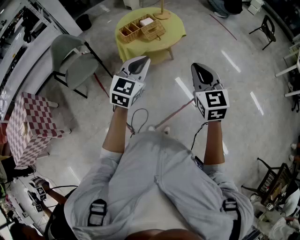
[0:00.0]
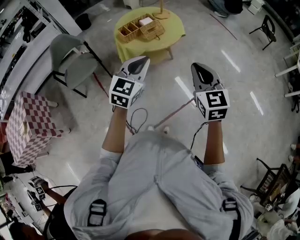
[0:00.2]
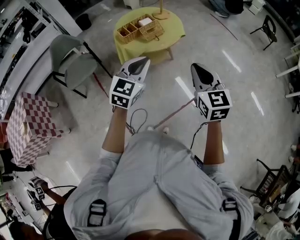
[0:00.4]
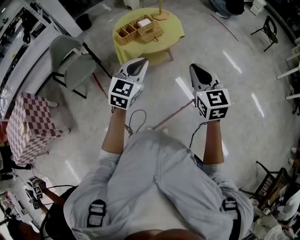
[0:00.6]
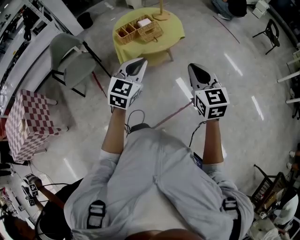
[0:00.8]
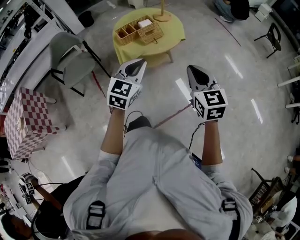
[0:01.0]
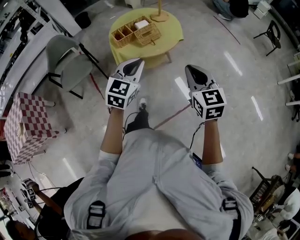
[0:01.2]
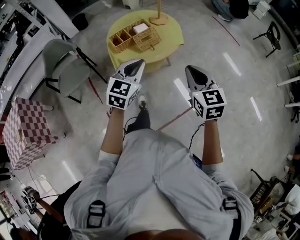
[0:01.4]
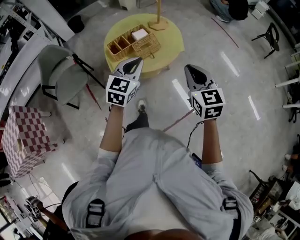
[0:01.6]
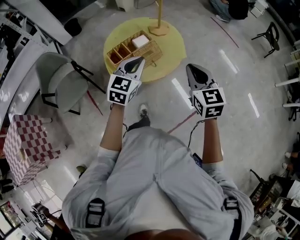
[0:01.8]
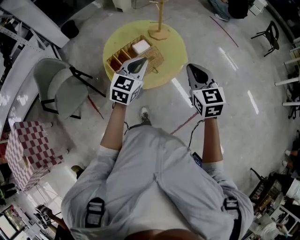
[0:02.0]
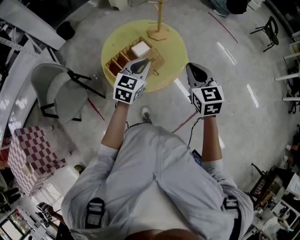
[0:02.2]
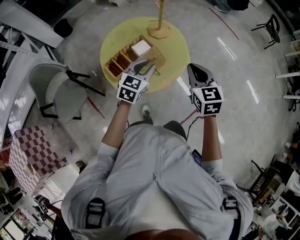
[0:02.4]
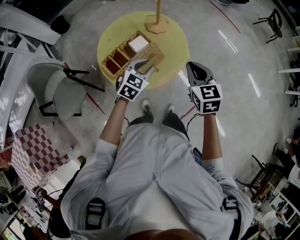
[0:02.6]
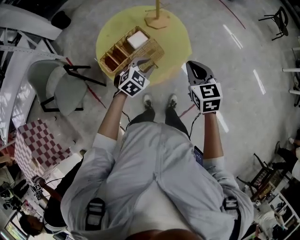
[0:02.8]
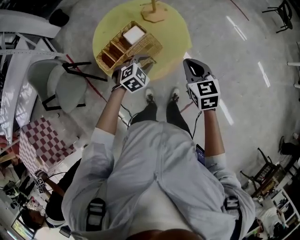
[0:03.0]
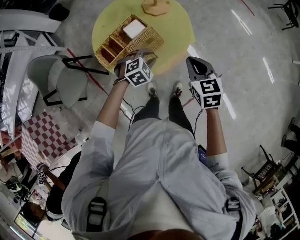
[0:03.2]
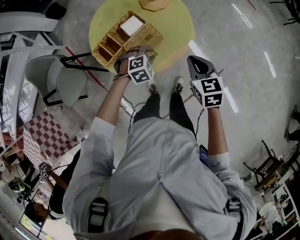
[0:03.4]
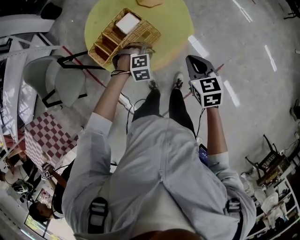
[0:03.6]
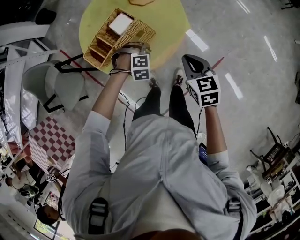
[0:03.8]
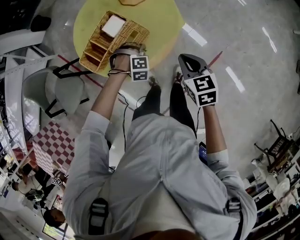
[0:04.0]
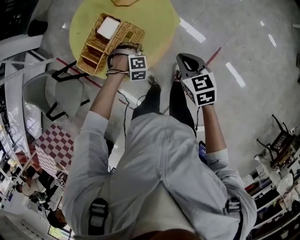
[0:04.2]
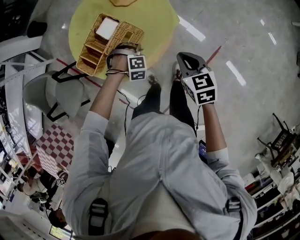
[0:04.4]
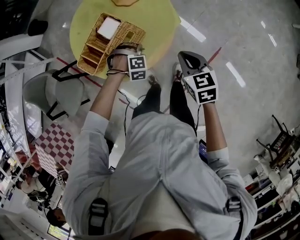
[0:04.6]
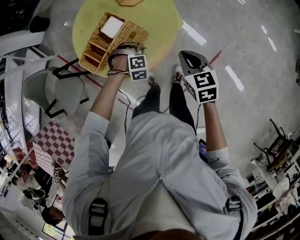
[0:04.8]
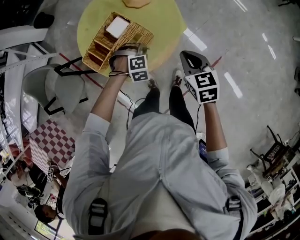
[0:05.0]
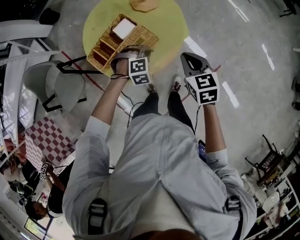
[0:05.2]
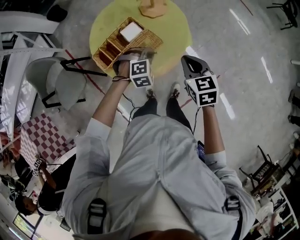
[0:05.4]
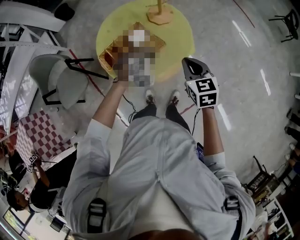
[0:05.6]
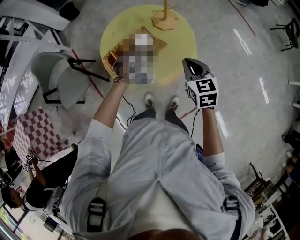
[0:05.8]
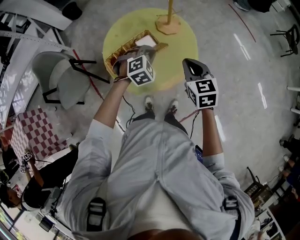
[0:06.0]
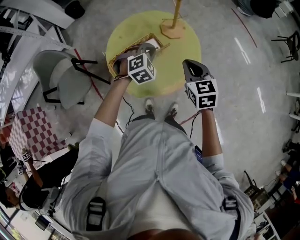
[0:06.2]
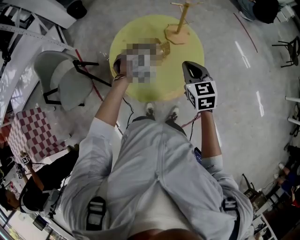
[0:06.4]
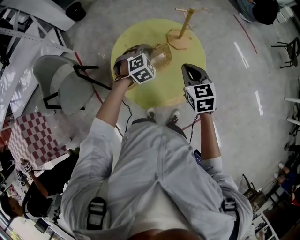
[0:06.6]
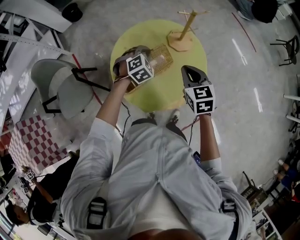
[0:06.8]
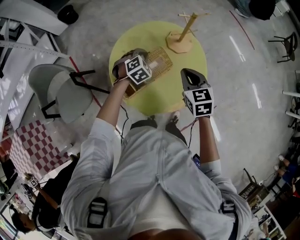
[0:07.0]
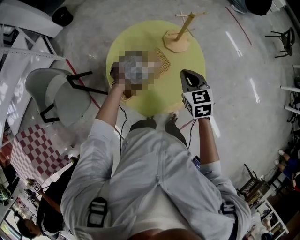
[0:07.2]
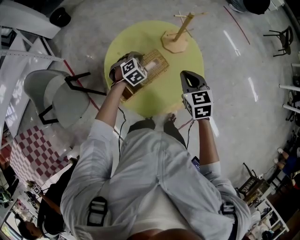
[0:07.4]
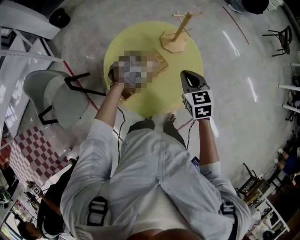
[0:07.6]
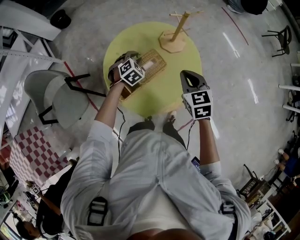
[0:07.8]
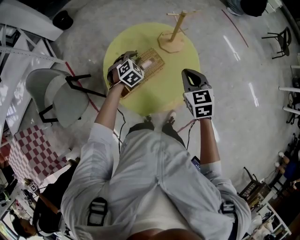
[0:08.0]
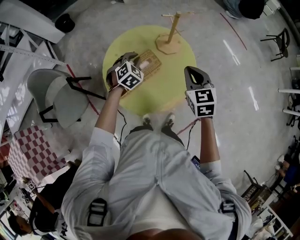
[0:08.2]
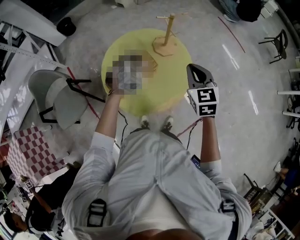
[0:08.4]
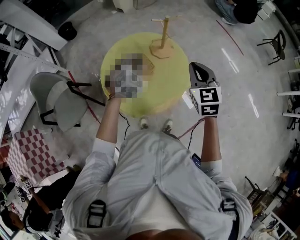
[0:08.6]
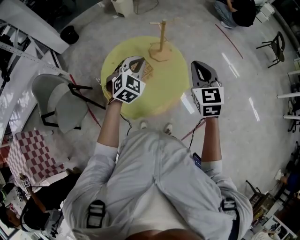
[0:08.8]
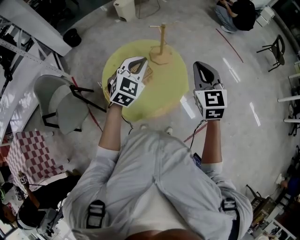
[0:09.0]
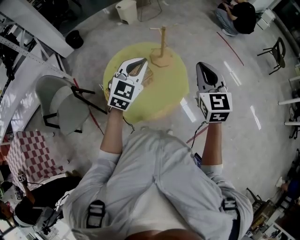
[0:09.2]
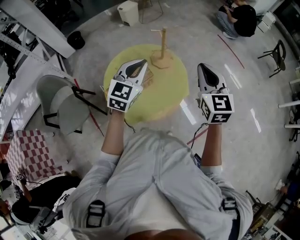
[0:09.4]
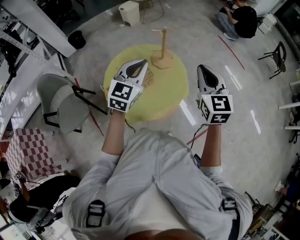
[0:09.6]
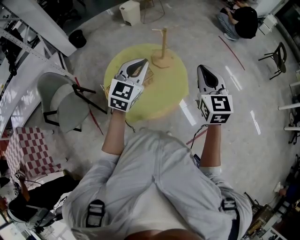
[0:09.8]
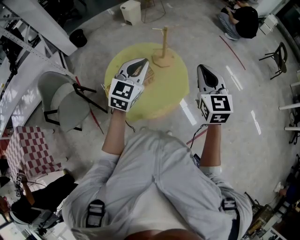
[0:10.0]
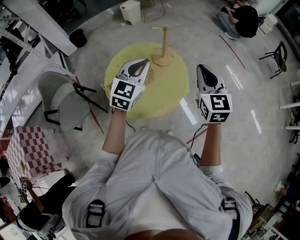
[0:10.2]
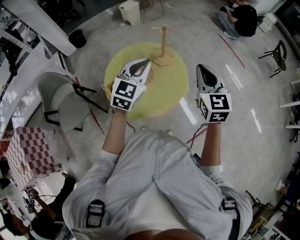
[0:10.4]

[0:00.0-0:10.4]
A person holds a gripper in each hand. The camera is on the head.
0:00.0 to 0:01.4: The grippers both shift forward by approximately 15 cm.
0:01.4 to 0:03.0: The grippers both shift forward and downward by about 35 cm. The left gripper tilts its fingers about 40 degrees downward.
0:03.0 to 0:04.4: The right gripper heads downward, covering some 10 cm. Meanwhile the left gripper shifts some 15 cm downward, and rolls clockwise, seen from behind, by roughly 40 degrees.
0:04.4 to 0:06.0: The right gripper shifts some 10 cm upward. The left gripper shifts some 20 cm upward, and rolls counterclockwise, seen from behind, by approximately 40 degrees.
0:06.0 to 0:07.4: The left gripper heads forward, to the left and downward, covering approximately 20 cm. Meanwhile the right gripper heads forward and to the left, covering about 10 cm.
0:07.4 to 0:09.0: The left gripper travels upward by about 30 cm, and tips its fingers upward by some 30 degrees. Meanwhile the right gripper moves upward and to the right, about 20 cm, and rotates approximately 30 degrees.
0:09.0 to 0:10.4: The left gripper ends up some 5 cm from where it was.

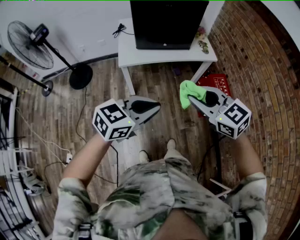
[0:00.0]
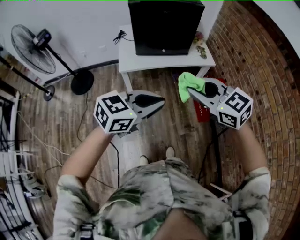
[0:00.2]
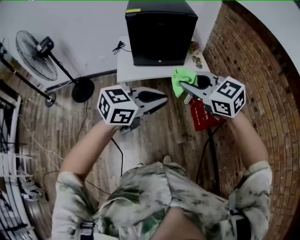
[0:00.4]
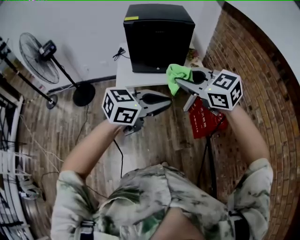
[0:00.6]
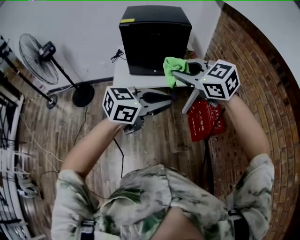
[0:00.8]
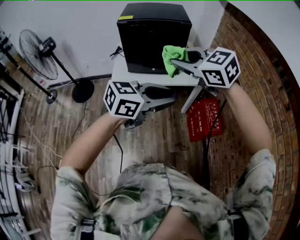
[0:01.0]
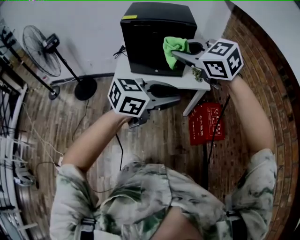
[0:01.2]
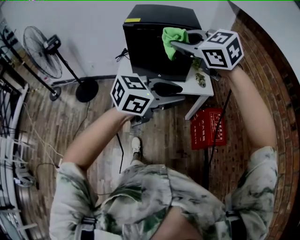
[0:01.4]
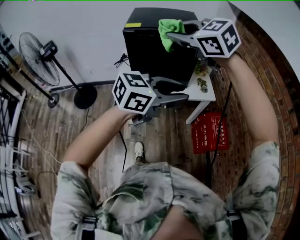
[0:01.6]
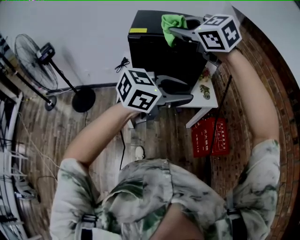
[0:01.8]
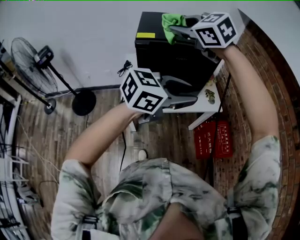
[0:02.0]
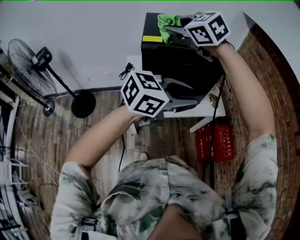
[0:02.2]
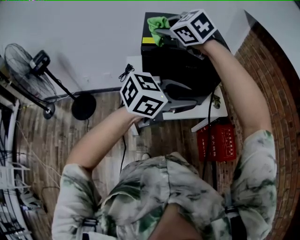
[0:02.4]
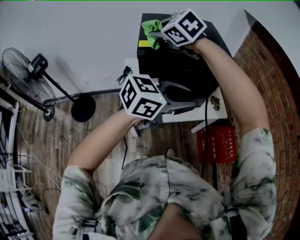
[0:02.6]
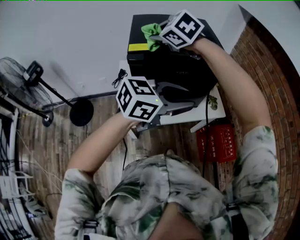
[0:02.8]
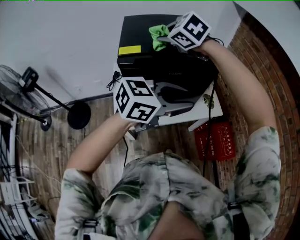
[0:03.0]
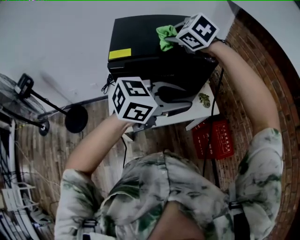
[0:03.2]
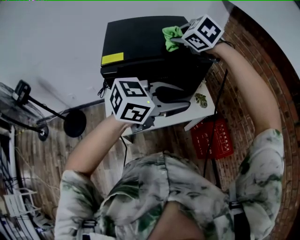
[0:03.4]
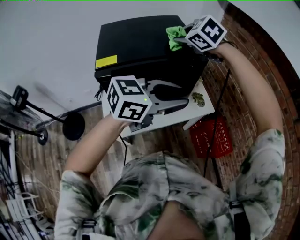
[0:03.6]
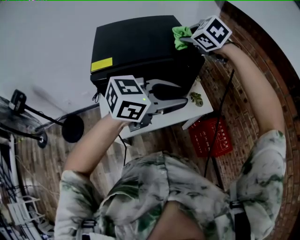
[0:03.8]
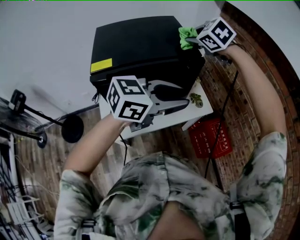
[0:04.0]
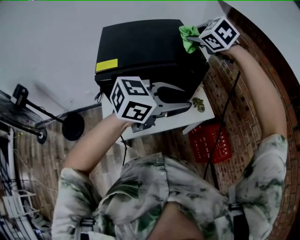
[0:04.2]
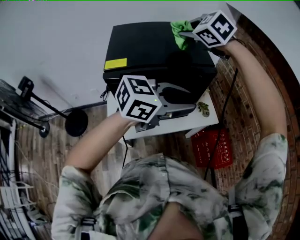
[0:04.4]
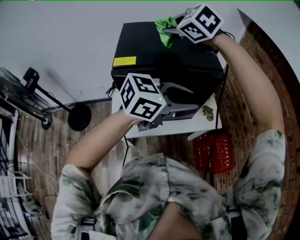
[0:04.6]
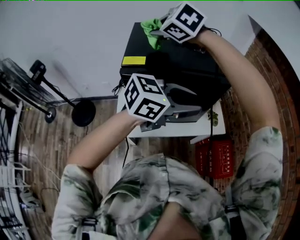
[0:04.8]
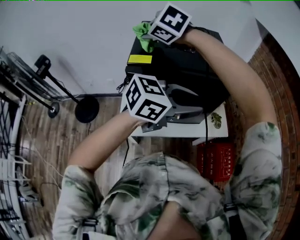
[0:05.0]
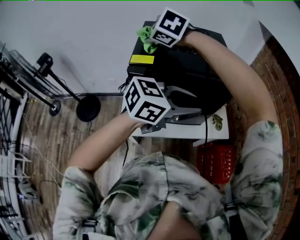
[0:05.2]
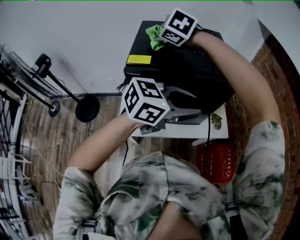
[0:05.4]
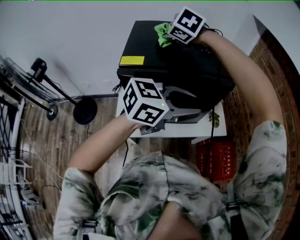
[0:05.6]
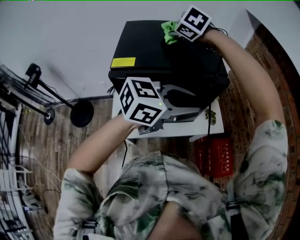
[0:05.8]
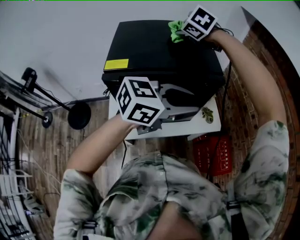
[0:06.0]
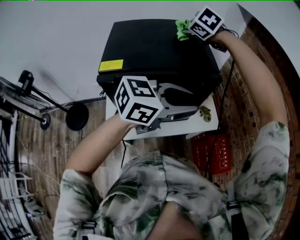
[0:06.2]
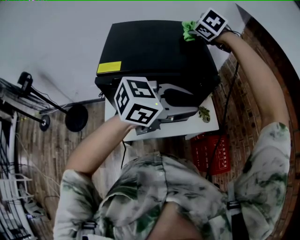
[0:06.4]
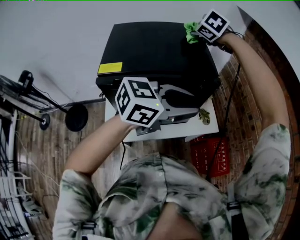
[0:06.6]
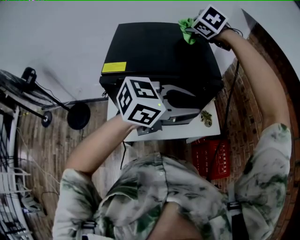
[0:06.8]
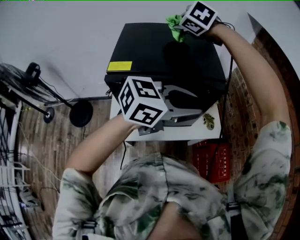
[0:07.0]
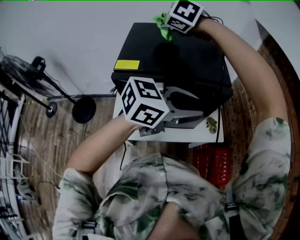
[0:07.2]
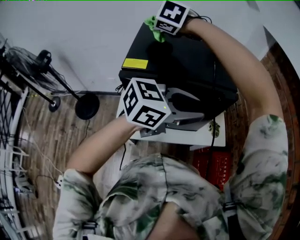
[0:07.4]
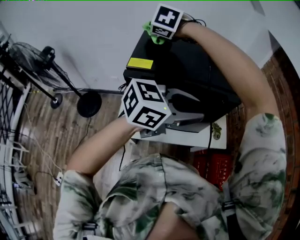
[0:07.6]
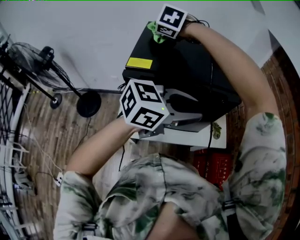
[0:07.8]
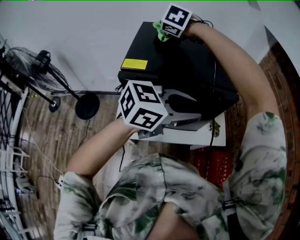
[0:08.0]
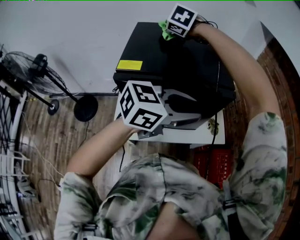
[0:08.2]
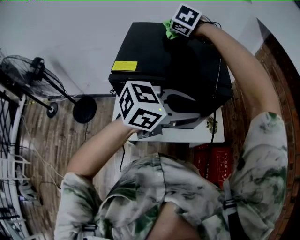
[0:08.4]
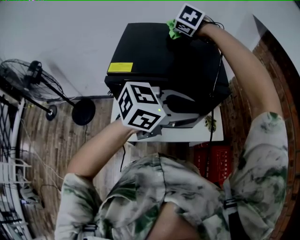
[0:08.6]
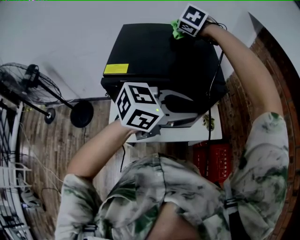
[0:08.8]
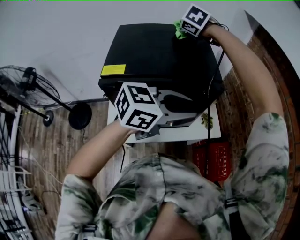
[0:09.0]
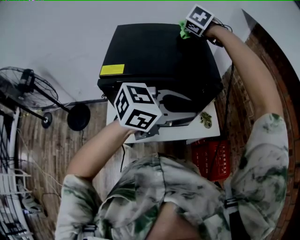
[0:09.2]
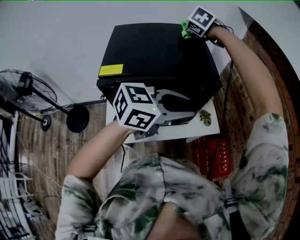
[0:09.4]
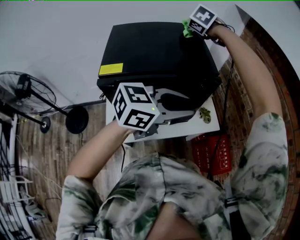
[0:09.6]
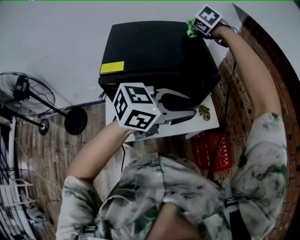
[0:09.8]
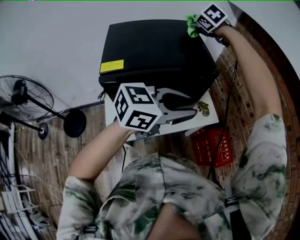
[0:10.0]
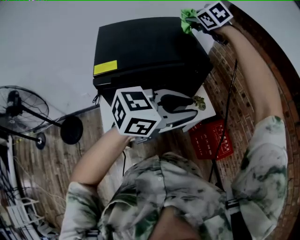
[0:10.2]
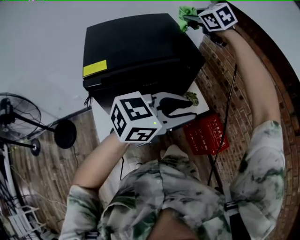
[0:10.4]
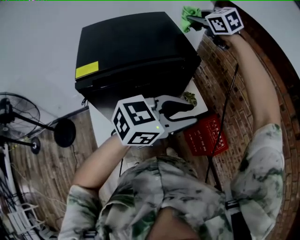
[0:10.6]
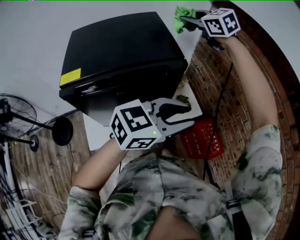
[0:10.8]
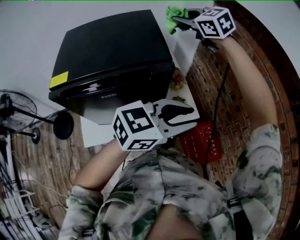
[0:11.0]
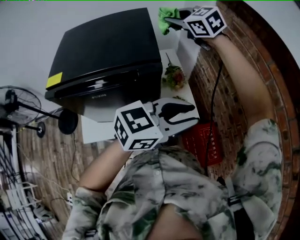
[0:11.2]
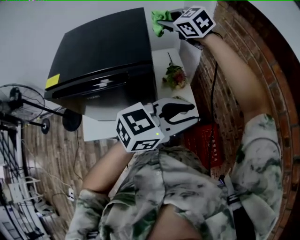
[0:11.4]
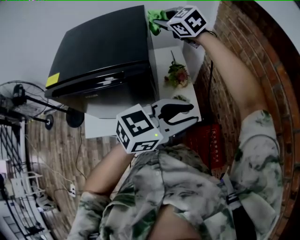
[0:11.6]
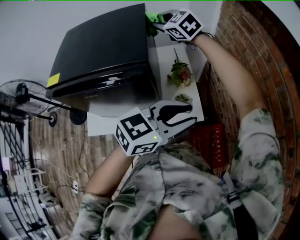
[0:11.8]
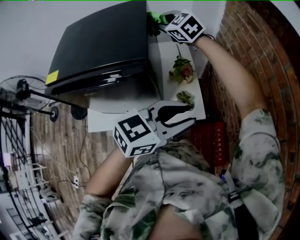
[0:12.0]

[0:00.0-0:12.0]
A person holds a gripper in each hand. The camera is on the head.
0:00.0 to 0:01.6: The right gripper shifts some 35 cm forward and upward. The left gripper goes about 25 cm forward, to the right and upward, and opens its fingers.
0:01.6 to 0:03.0: Both grippers move forward and to the left, about 25 cm.
0:03.0 to 0:04.4: The right gripper travels forward and to the right by about 15 cm, while the left gripper is displaced forward by some 5 cm.
0:06.0 to 0:07.6: The right gripper moves to the left and backward, roughly 20 cm, and changes its angle by roughly 20 degrees.
0:07.6 to 0:09.0: The right gripper shifts some 25 cm to the right and forward, and changes its angle by some 20 degrees.
0:09.0 to 0:10.4: The right gripper goes roughly 15 cm to the right, and swivels roughly 30 degrees; the left gripper travels backward by approximately 5 cm.
0:10.4 to 0:12.0: The left gripper heads to the right, forward and downward, covering roughly 25 cm, and turns by about 20 degrees, while the right gripper heads downward and forward, covering about 15 cm, and rotates some 30 degrees.

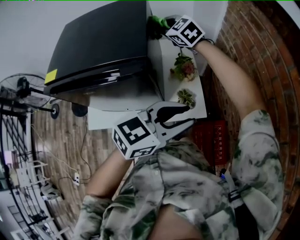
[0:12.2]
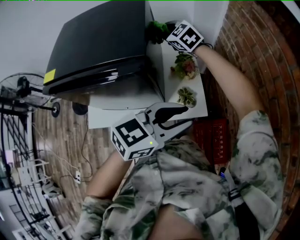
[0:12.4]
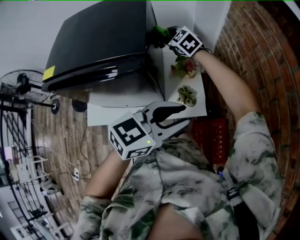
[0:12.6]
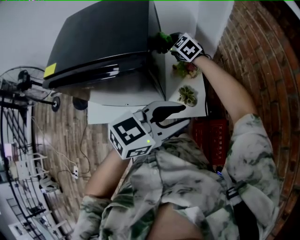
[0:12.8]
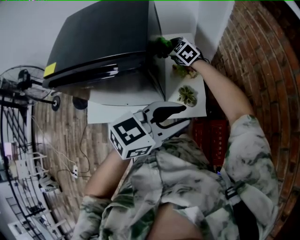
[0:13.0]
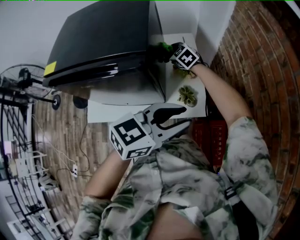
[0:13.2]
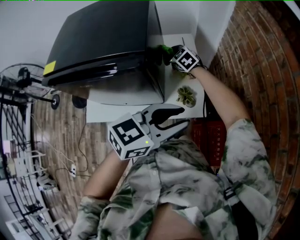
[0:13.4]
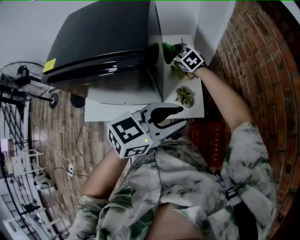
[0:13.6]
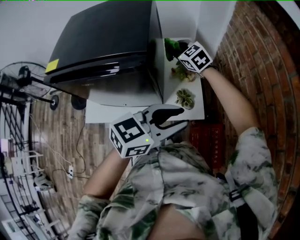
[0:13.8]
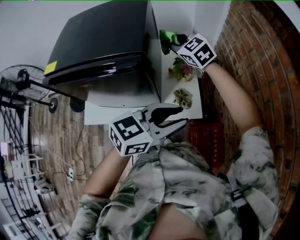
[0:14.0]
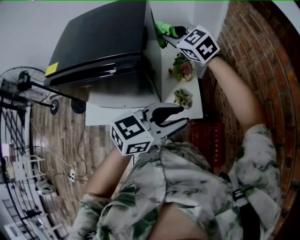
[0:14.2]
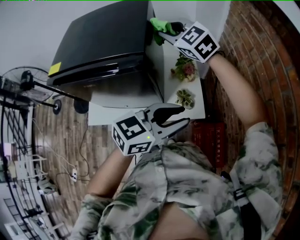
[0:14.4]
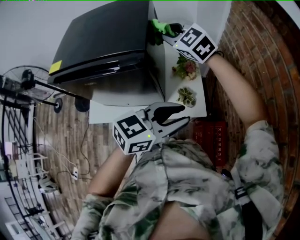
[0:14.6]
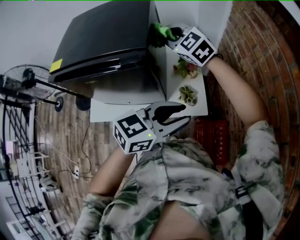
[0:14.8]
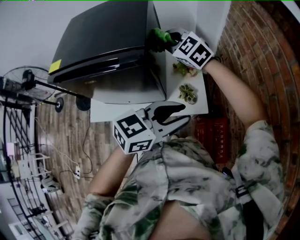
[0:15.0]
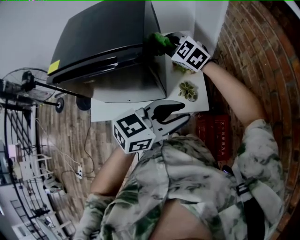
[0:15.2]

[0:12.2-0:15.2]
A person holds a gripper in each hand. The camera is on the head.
0:12.2 to 0:13.8: The right gripper shifts some 10 cm downward.
0:13.8 to 0:15.2: The right gripper moves backward, about 5 cm, and reaches some 15 cm upward, then returns.
